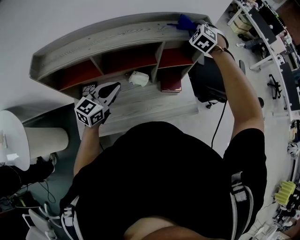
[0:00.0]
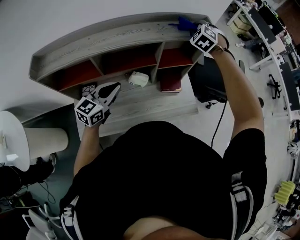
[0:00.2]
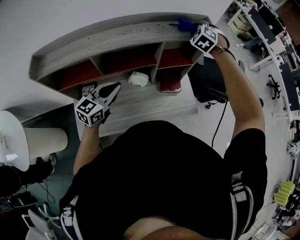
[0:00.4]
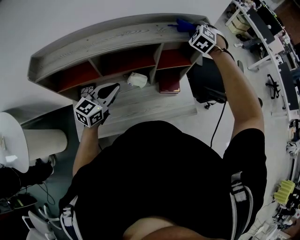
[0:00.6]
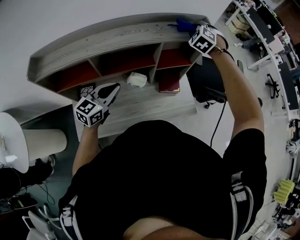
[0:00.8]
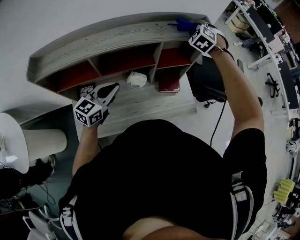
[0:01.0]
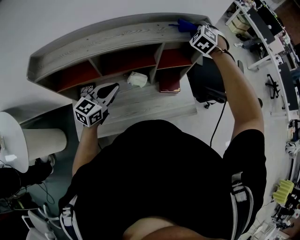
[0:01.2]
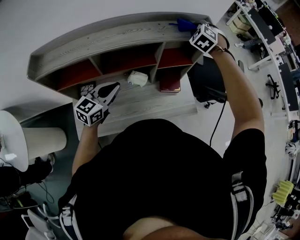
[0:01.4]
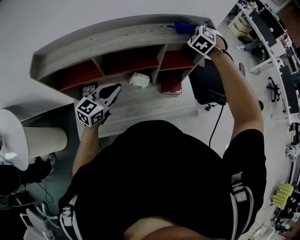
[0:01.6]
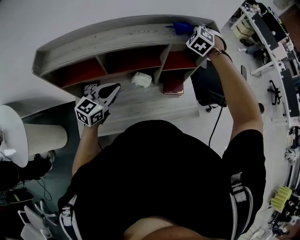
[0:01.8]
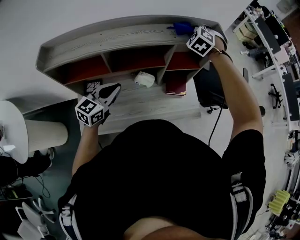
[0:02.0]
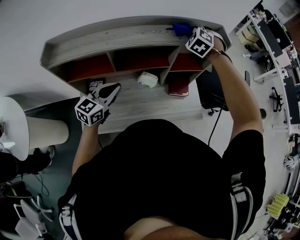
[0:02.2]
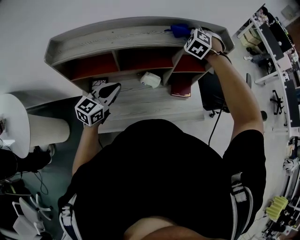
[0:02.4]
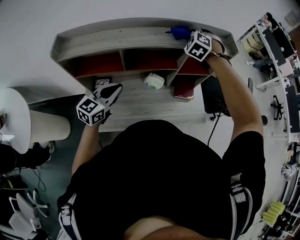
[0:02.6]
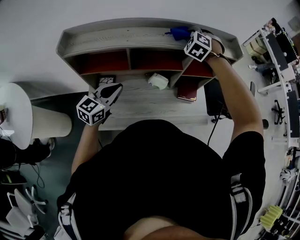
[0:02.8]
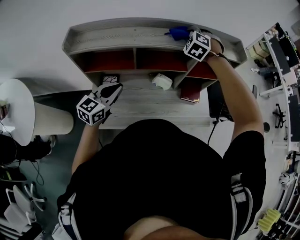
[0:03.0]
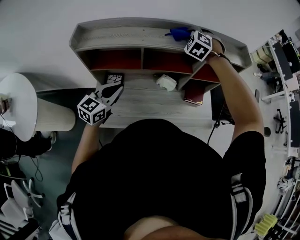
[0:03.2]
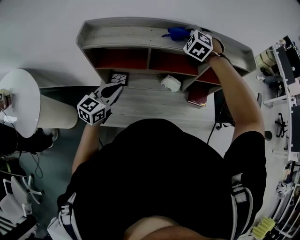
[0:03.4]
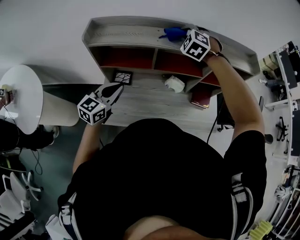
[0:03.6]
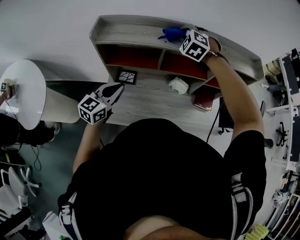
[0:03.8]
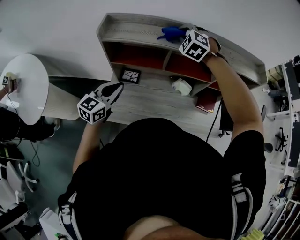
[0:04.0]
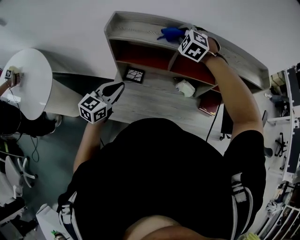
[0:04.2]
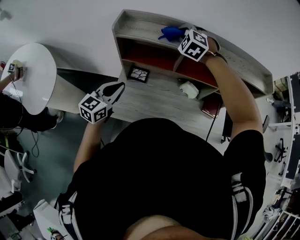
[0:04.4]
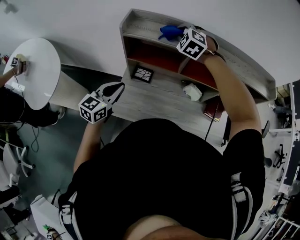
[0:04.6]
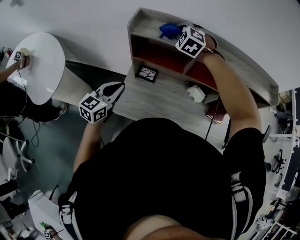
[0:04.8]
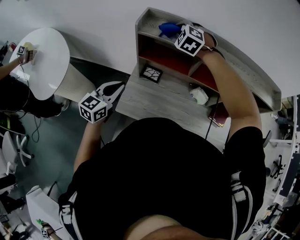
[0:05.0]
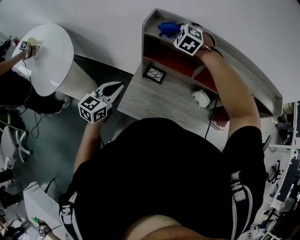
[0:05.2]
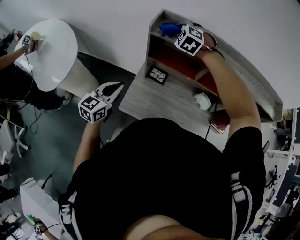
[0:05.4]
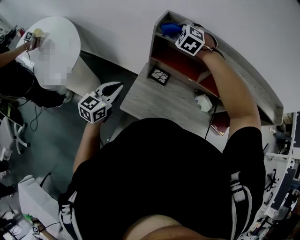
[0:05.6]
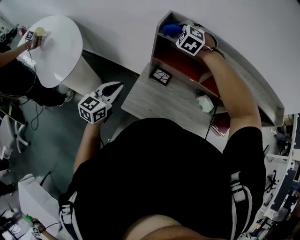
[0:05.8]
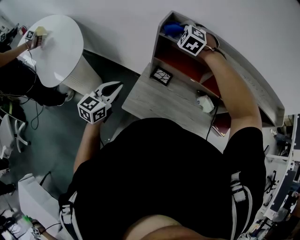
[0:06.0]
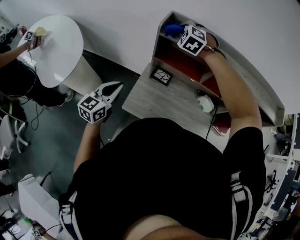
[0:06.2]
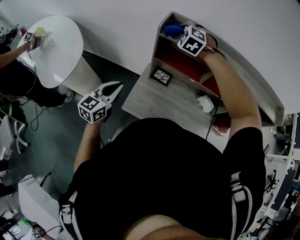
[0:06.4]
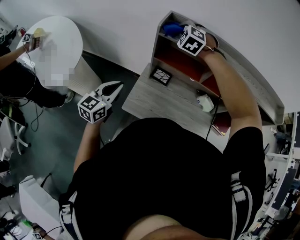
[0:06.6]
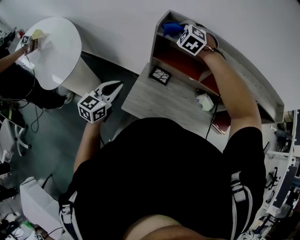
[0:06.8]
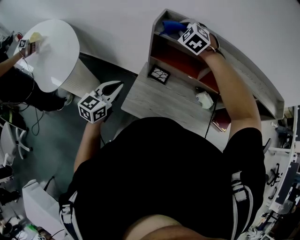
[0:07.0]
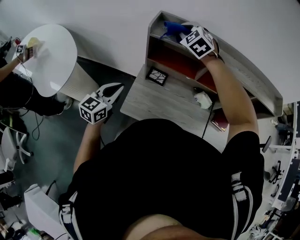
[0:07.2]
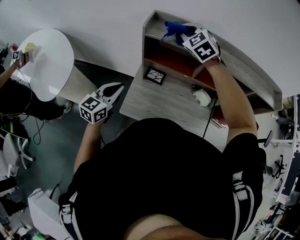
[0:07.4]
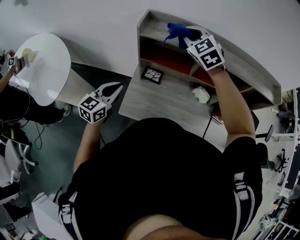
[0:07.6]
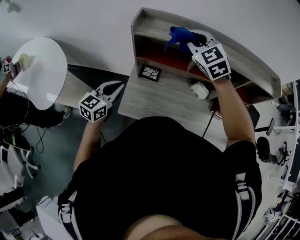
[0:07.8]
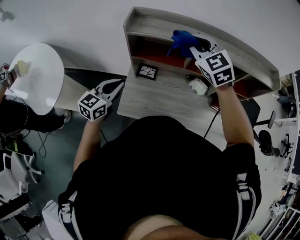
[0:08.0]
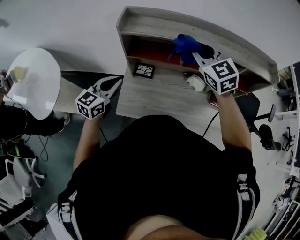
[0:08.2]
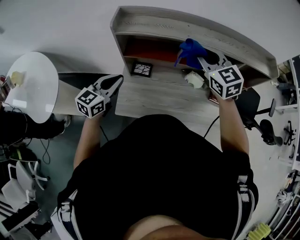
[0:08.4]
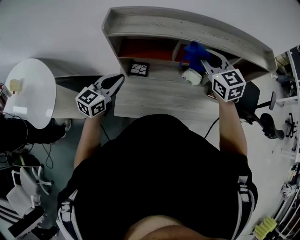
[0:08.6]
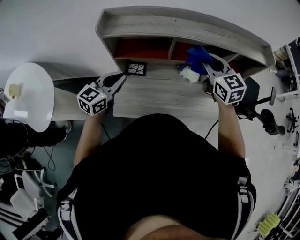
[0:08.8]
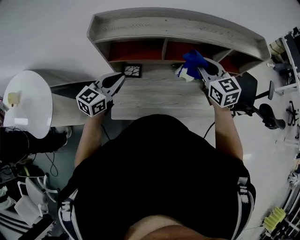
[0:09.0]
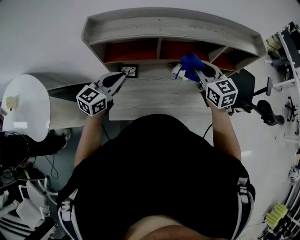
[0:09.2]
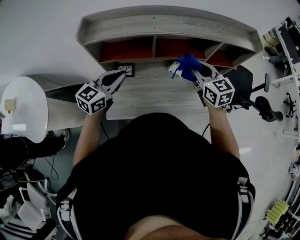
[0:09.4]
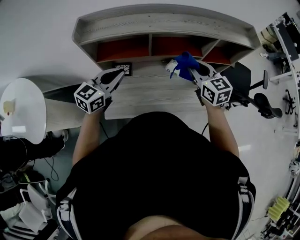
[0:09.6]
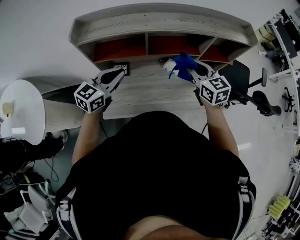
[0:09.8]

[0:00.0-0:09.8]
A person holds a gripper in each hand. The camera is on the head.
0:00.0 to 0:01.4: The grippers move only a little.
0:01.4 to 0:02.8: The right gripper shifts about 20 cm to the left and backward, while the left gripper goes approximately 10 cm to the left and backward.
0:02.8 to 0:04.2: The left gripper moves to the left and backward, some 15 cm, while the right gripper shifts approximately 25 cm to the left, and swivels about 20 degrees.
0:04.2 to 0:05.6: The right gripper shifts about 20 cm to the left; the left gripper is displaced to the left and backward by approximately 15 cm.
0:05.6 to 0:07.0: There are only small adjustments of the grippers.
0:07.0 to 0:08.4: The right gripper shifts about 25 cm to the right and backward, and rotates around the line of its fingers by approximately 40 degrees, clockwise from behind. The left gripper heads to the right and forward, covering some 10 cm.
0:08.4 to 0:09.8: The left gripper moves to the right, about 15 cm; the right gripper moves to the right and downward, approximately 15 cm, and turns by about 20 degrees.

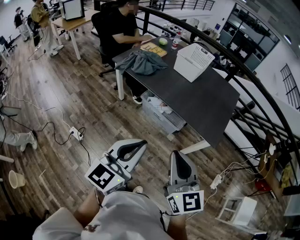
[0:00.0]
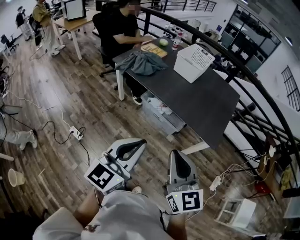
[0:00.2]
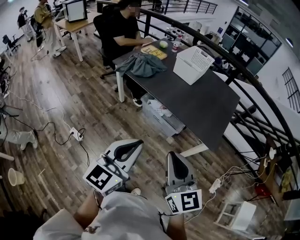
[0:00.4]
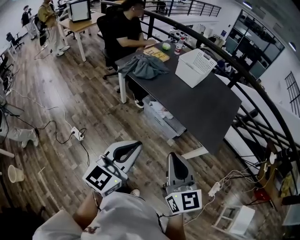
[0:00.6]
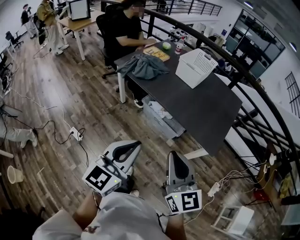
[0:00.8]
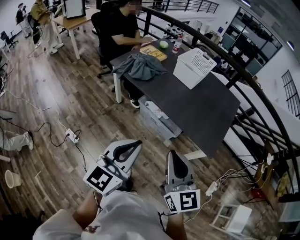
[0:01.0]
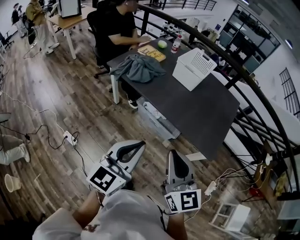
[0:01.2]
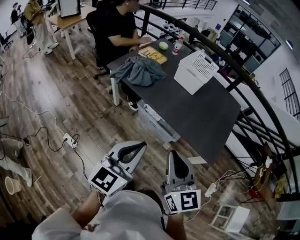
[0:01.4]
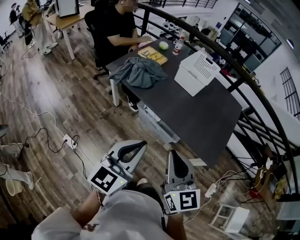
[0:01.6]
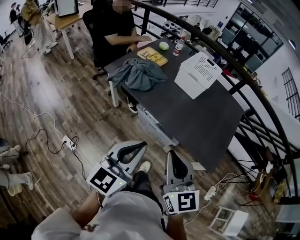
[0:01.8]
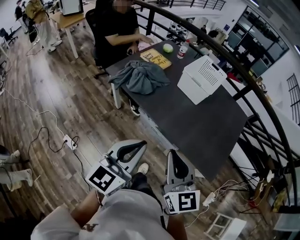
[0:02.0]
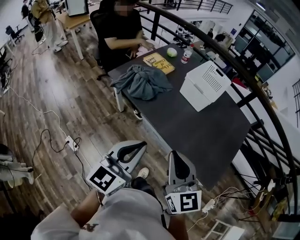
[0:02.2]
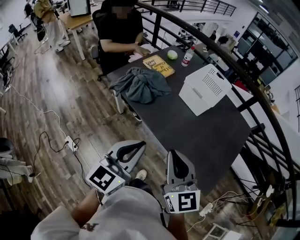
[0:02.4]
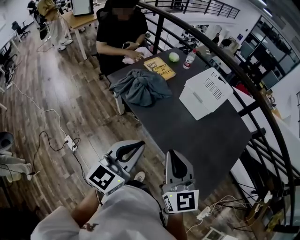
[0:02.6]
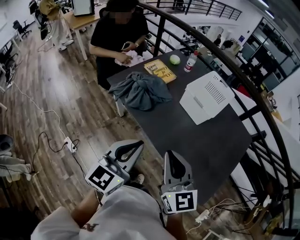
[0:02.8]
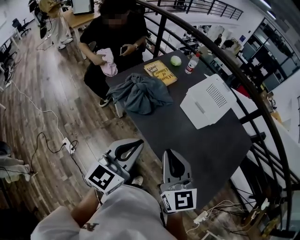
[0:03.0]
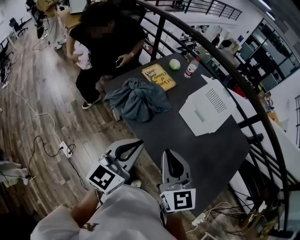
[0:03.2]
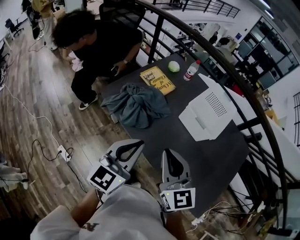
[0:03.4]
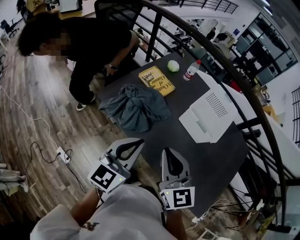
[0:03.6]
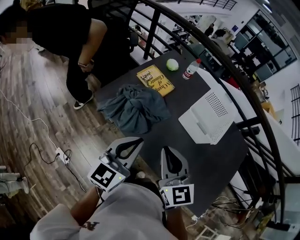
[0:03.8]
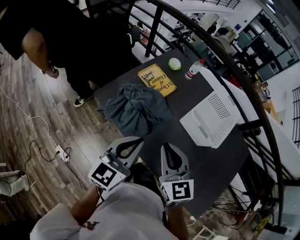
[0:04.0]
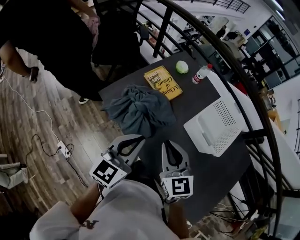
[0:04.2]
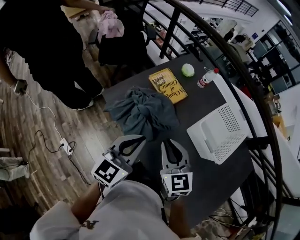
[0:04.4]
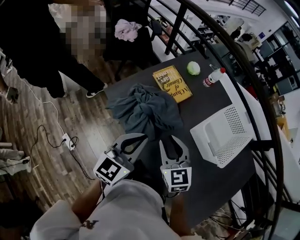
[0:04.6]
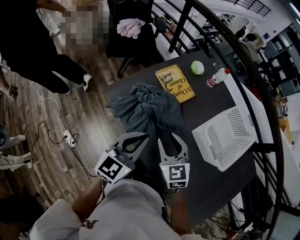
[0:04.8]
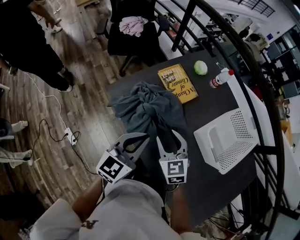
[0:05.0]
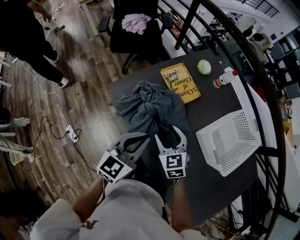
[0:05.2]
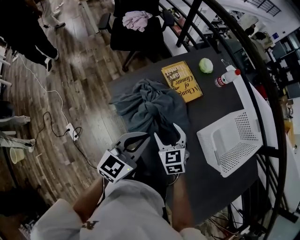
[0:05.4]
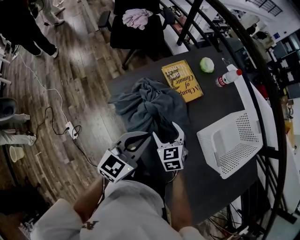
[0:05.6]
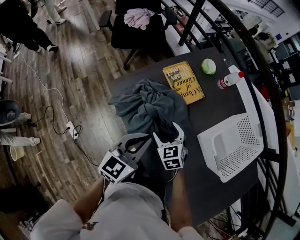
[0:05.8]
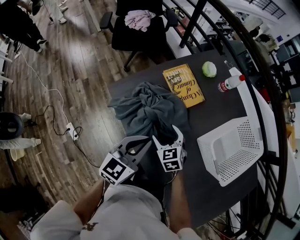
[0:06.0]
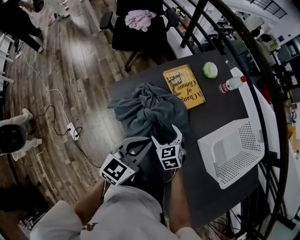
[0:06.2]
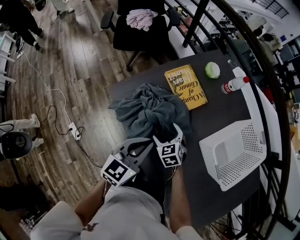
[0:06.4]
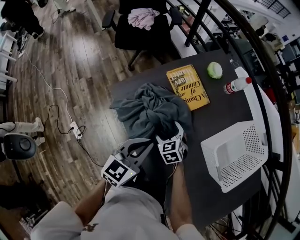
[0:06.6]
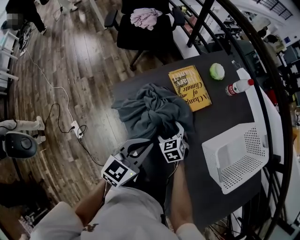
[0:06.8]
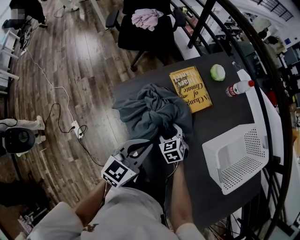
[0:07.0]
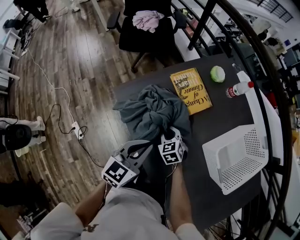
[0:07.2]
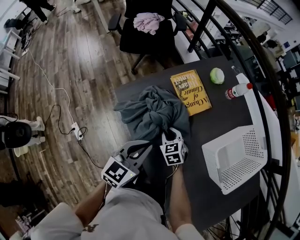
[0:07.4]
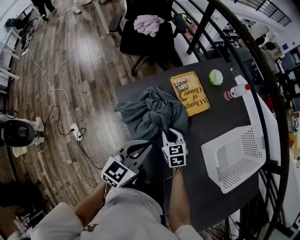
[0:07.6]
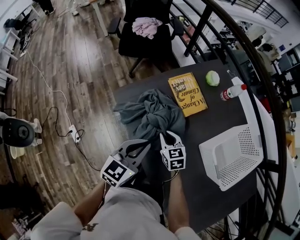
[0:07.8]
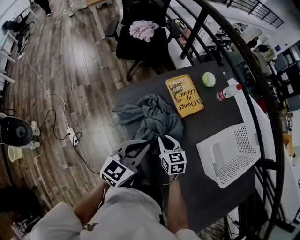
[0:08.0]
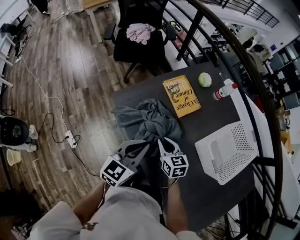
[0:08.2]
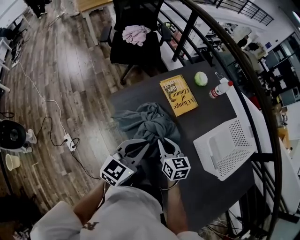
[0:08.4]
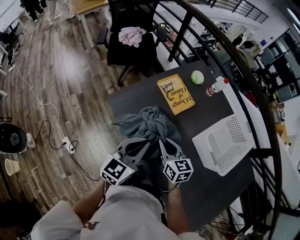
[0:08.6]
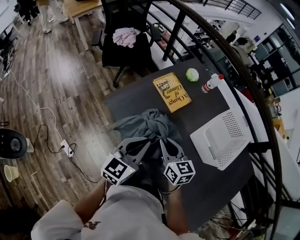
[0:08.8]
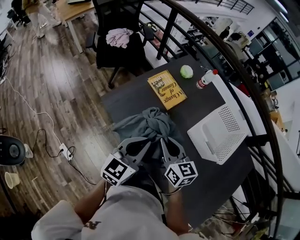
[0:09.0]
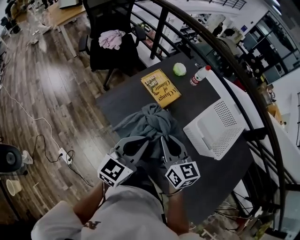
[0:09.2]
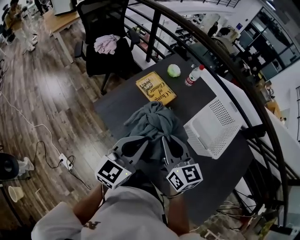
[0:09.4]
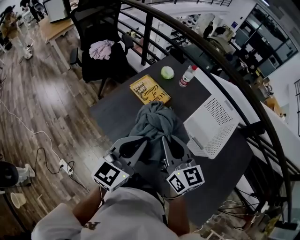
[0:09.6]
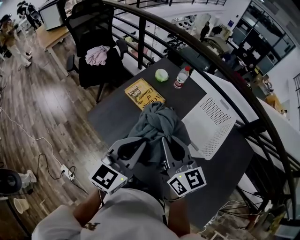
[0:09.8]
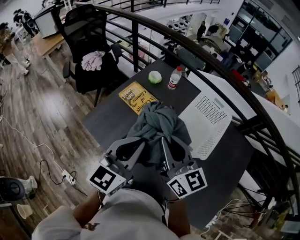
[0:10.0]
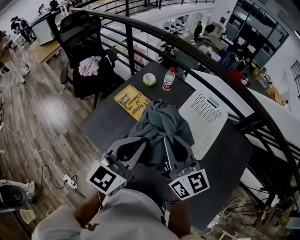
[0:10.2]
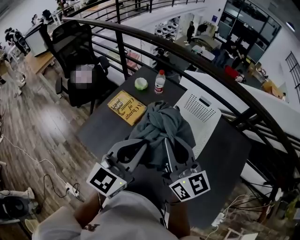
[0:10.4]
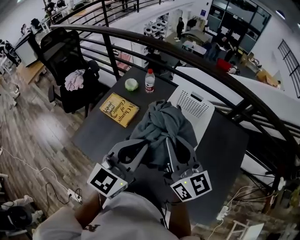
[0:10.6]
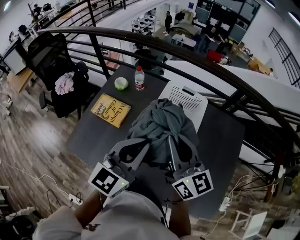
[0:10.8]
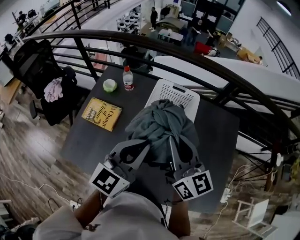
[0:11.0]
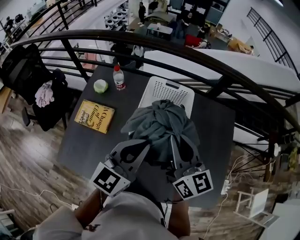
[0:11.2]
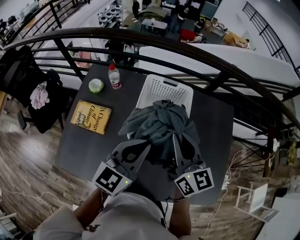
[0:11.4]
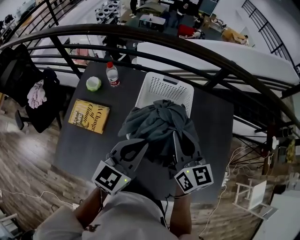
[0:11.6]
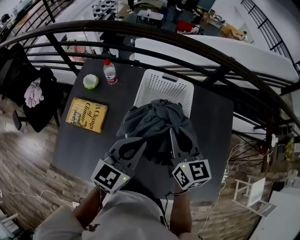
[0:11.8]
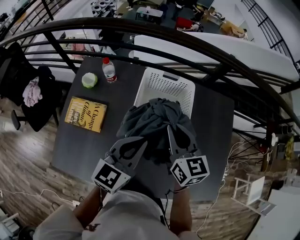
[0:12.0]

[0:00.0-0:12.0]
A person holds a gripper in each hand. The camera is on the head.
0:00.0 to 0:01.6: The grippers both shift forward by about 20 cm.
0:01.6 to 0:03.0: The two grippers go some 25 cm forward.
0:03.0 to 0:04.4: The left gripper goes some 25 cm forward. The right gripper heads forward and downward, covering approximately 25 cm.
0:04.4 to 0:06.0: The left gripper heads downward and forward, covering roughly 10 cm. Meanwhile the right gripper moves downward and forward, about 25 cm, changes its angle by roughly 30 degrees, and opens.
0:06.0 to 0:07.6: The right gripper closes.
0:07.6 to 0:09.0: The right gripper travels upward and backward by about 20 cm, and changes its angle by about 30 degrees; the left gripper travels upward by roughly 5 cm.
0:09.0 to 0:10.4: Both grippers move to the right and upward, roughly 25 cm. The right gripper turns by approximately 30 degrees.
0:10.4 to 0:12.0: The left gripper ends up approximately 15 cm from where it was, and swivels some 30 degrees. The right gripper ends up approximately 20 cm from where it was, and swivels about 40 degrees.

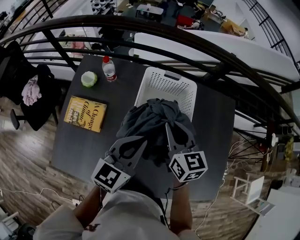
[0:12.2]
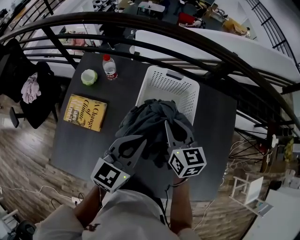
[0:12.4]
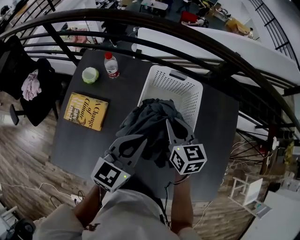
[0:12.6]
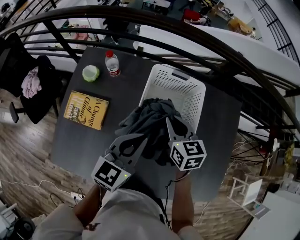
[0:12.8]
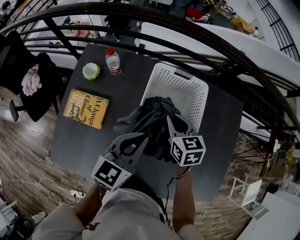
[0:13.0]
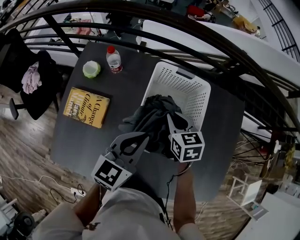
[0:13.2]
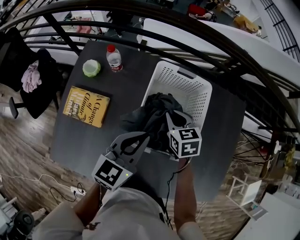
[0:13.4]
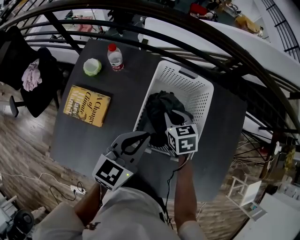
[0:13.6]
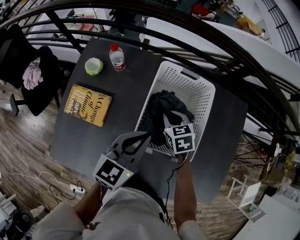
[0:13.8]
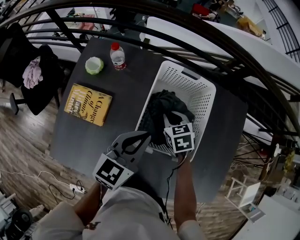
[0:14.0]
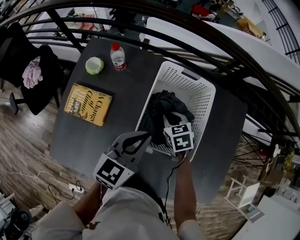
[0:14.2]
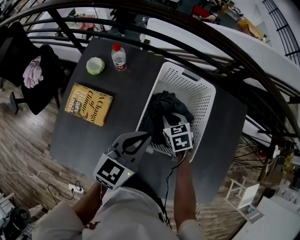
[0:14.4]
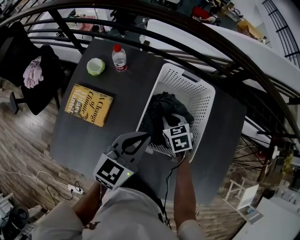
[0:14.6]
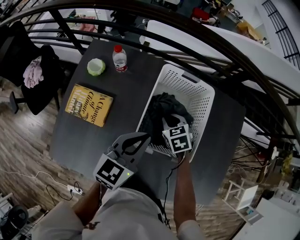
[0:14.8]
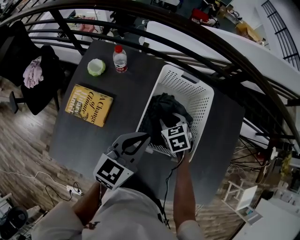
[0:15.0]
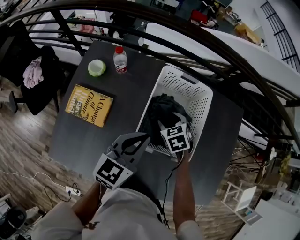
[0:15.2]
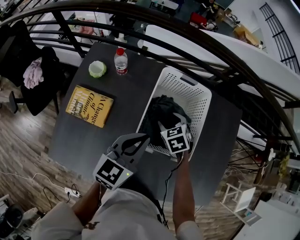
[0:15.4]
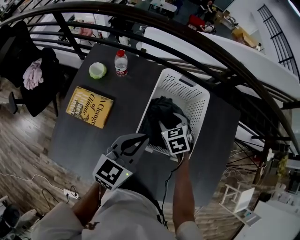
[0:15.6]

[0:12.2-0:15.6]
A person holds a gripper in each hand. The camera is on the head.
0:12.2 to 0:13.8: The left gripper changes place by approximately 5 cm. The right gripper travels downward by about 15 cm, and angles its fingers downward, by about 30 degrees.
0:13.8 to 0:15.6: The right gripper opens its fingers.
